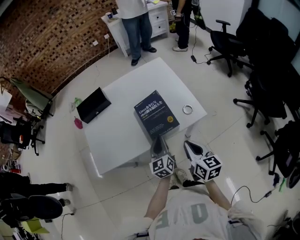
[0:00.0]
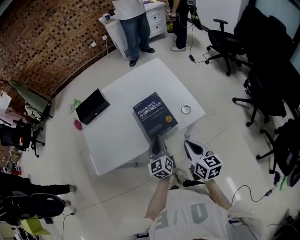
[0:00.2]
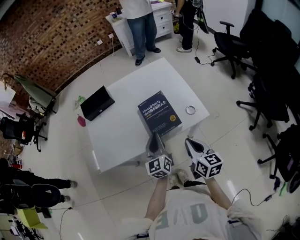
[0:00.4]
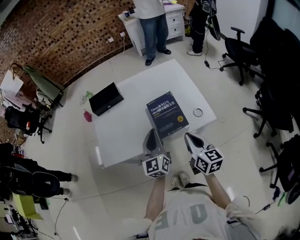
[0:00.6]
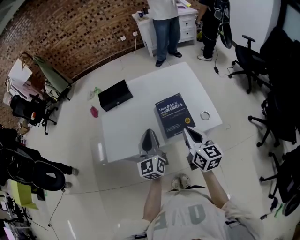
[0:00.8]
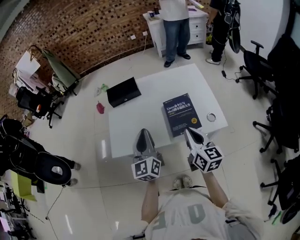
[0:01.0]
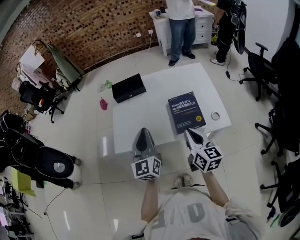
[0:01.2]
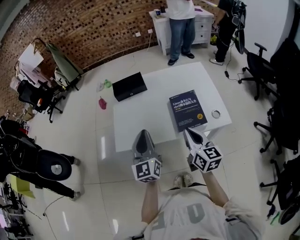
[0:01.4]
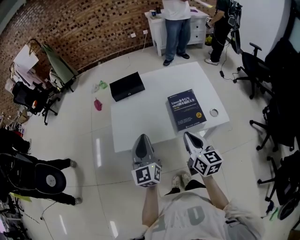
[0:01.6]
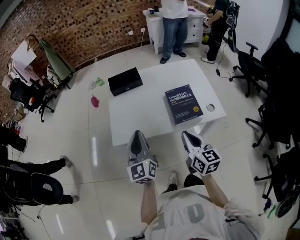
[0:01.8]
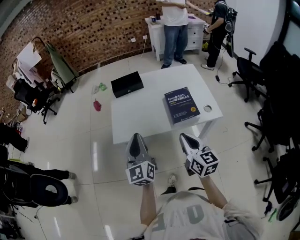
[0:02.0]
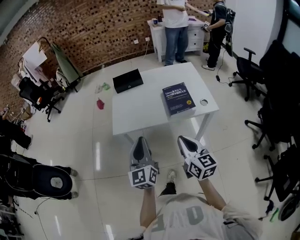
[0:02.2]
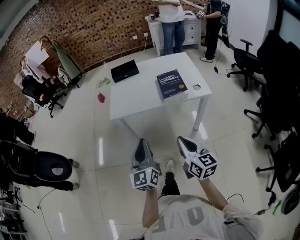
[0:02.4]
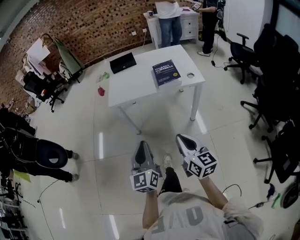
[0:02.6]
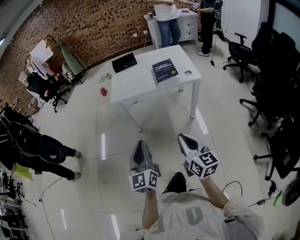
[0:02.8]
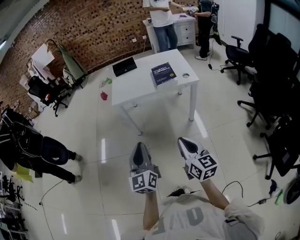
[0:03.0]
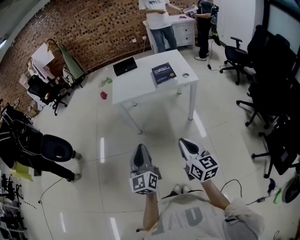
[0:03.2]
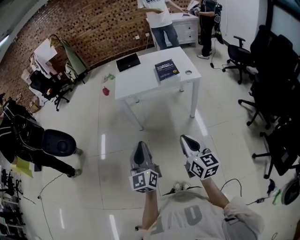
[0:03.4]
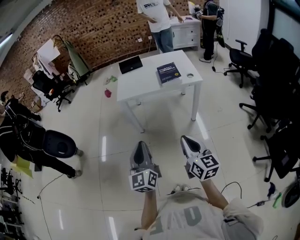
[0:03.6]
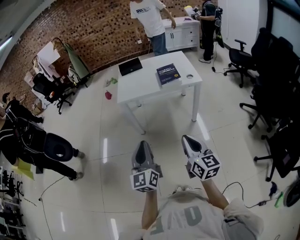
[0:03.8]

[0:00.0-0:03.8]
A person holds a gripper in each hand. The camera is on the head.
0:00.0 to 0:01.2: The left gripper shifts about 25 cm upward and to the left, and swivels approximately 30 degrees, while the right gripper is displaced to the left, upward and forward by roughly 15 cm.
0:01.2 to 0:02.6: The pair of grippers is taken backward, roughly 40 cm.
0:02.6 to 0:03.8: Both grippers travel together backward, approximately 10 cm.

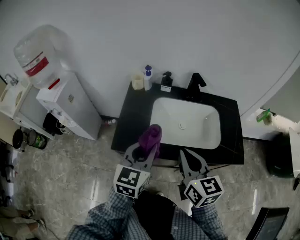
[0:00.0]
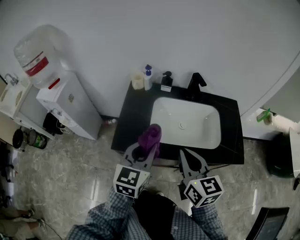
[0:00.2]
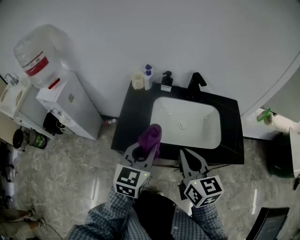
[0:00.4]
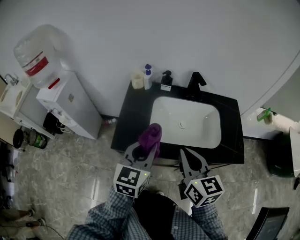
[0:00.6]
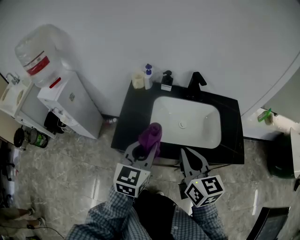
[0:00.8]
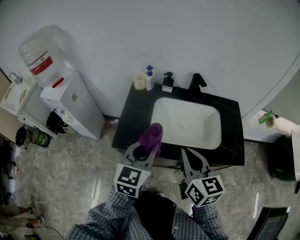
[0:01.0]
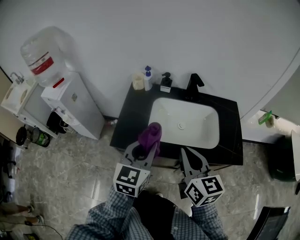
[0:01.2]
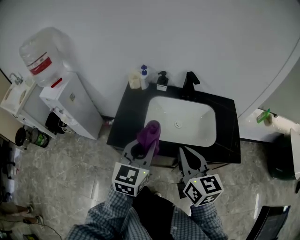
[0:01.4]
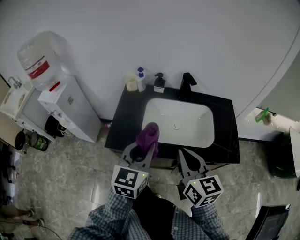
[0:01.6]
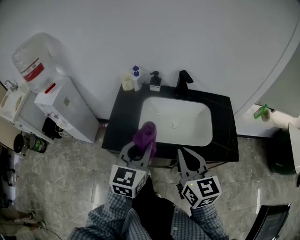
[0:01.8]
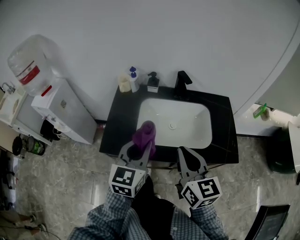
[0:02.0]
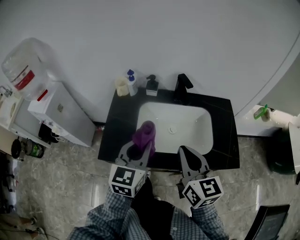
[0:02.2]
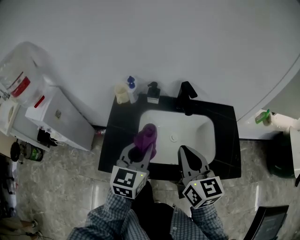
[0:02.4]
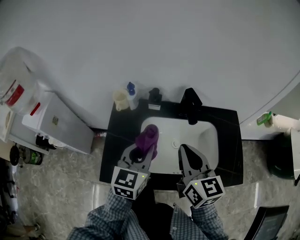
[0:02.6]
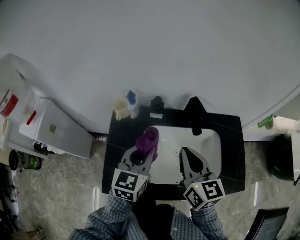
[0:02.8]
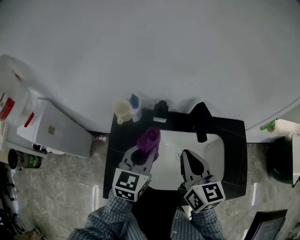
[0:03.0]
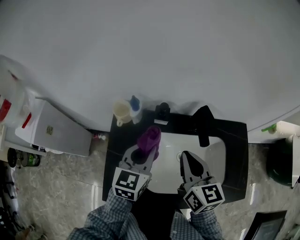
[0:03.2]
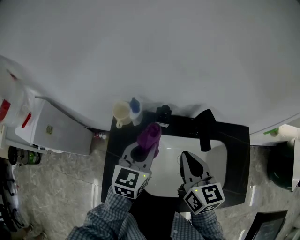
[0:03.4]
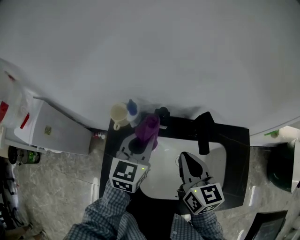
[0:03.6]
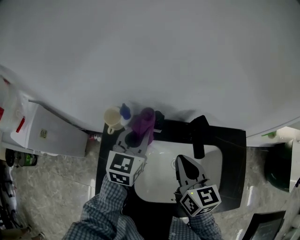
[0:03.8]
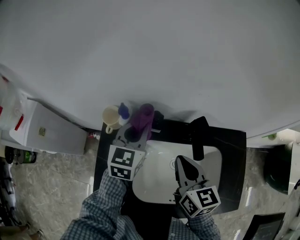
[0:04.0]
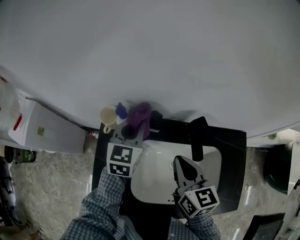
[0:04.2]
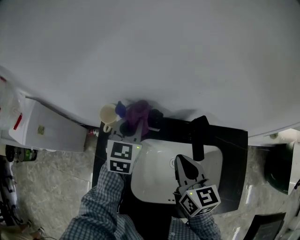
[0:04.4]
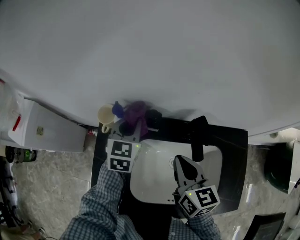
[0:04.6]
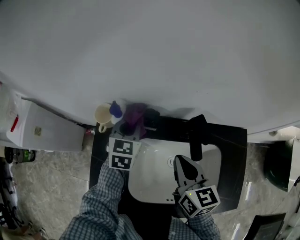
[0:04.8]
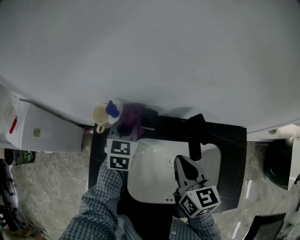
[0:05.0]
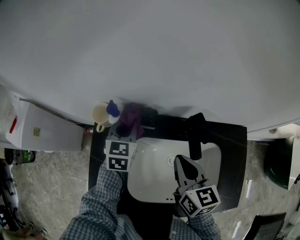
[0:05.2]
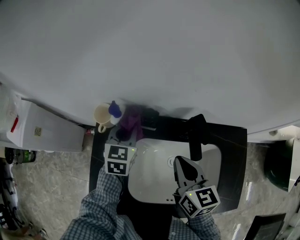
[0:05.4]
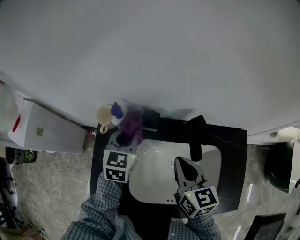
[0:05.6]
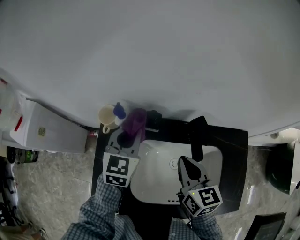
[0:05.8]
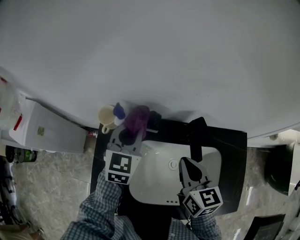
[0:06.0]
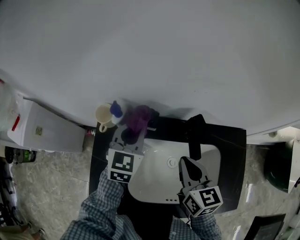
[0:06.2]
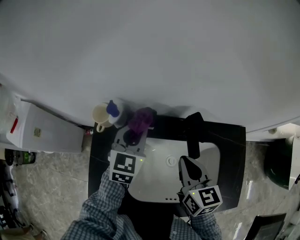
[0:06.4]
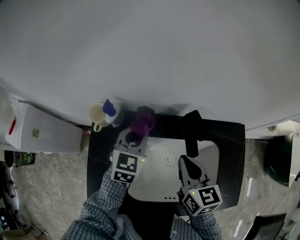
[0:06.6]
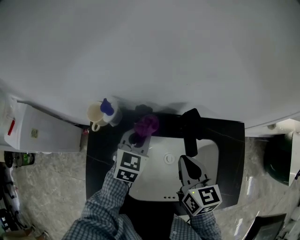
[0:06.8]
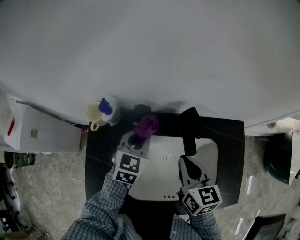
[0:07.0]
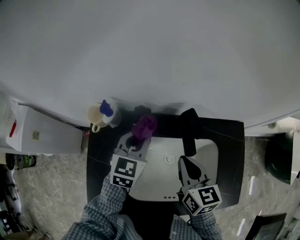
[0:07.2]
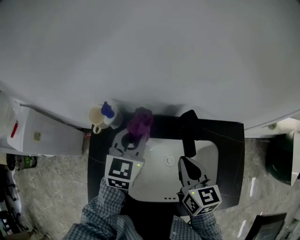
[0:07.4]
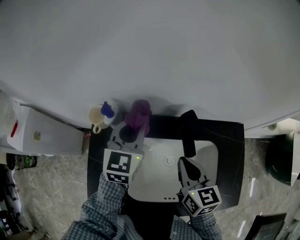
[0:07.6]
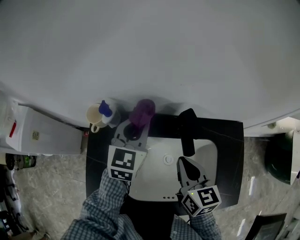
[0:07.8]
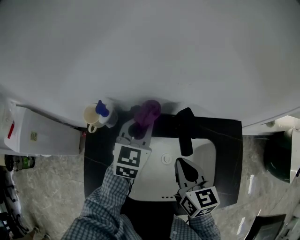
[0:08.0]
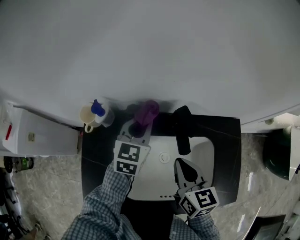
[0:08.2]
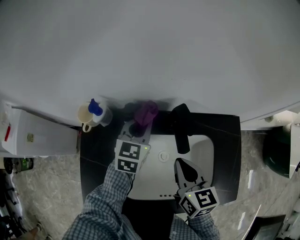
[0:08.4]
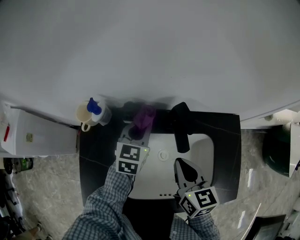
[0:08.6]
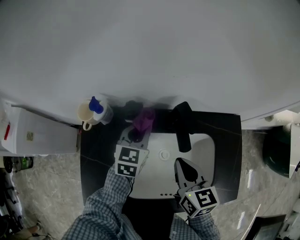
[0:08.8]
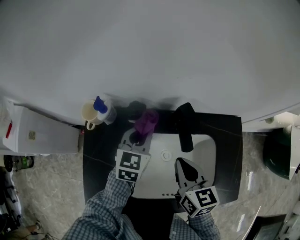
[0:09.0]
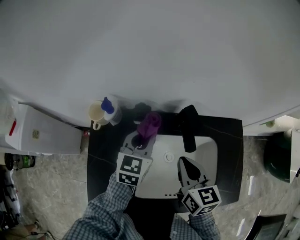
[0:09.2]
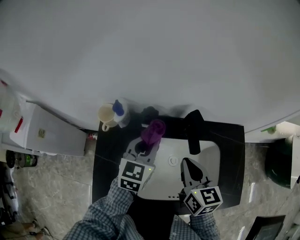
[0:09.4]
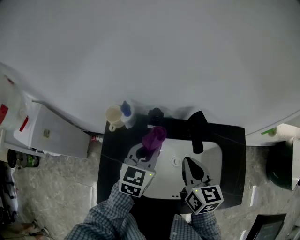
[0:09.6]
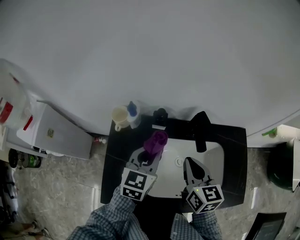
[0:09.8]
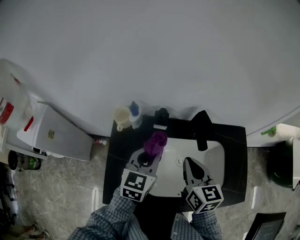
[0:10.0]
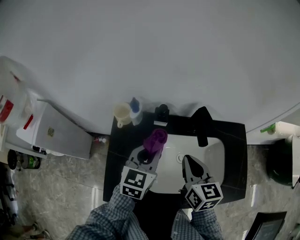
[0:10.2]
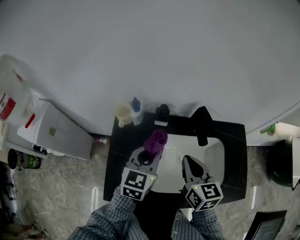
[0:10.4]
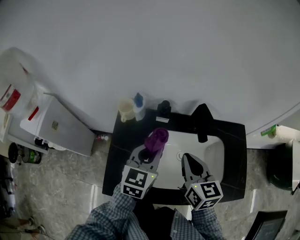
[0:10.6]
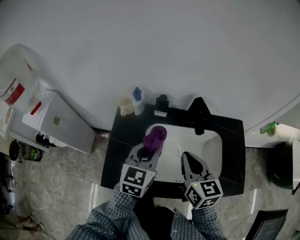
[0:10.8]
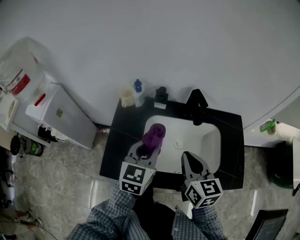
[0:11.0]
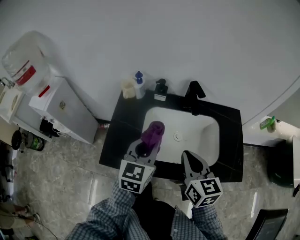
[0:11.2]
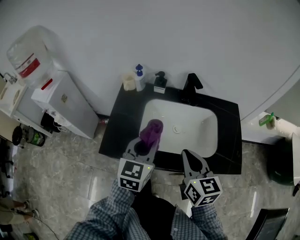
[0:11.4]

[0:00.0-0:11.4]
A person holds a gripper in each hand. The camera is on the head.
0:00.0 to 0:01.4: The grippers make only small movements.
0:01.4 to 0:02.8: Both grippers travel together forward, approximately 25 cm.
0:02.8 to 0:04.2: The right gripper heads forward and downward, covering some 10 cm; the left gripper heads forward, covering approximately 20 cm.
0:05.6 to 0:07.2: The left gripper travels to the right by about 10 cm.
0:07.2 to 0:08.6: The left gripper shifts by some 5 cm.
0:08.6 to 0:10.0: The right gripper shifts about 10 cm to the left and upward. The left gripper is displaced backward, upward and to the left by roughly 15 cm.
0:10.0 to 0:11.4: Both grippers move backward, approximately 20 cm.

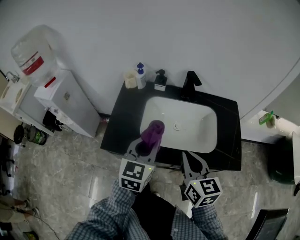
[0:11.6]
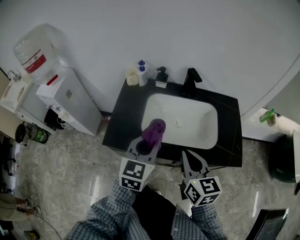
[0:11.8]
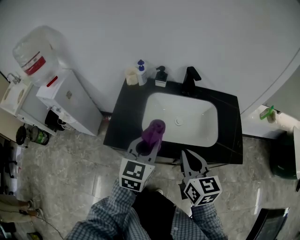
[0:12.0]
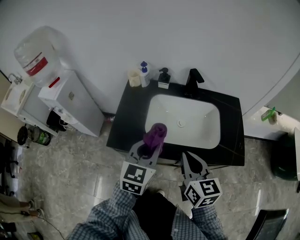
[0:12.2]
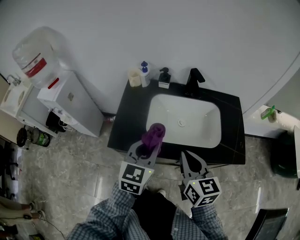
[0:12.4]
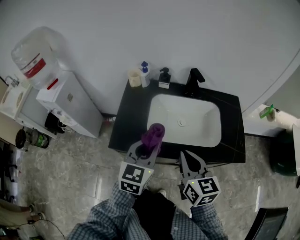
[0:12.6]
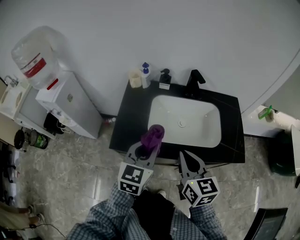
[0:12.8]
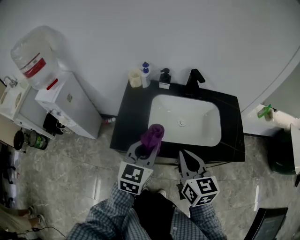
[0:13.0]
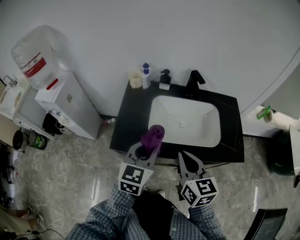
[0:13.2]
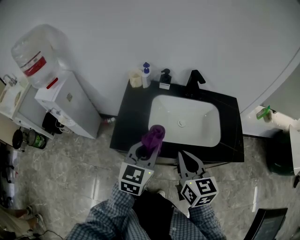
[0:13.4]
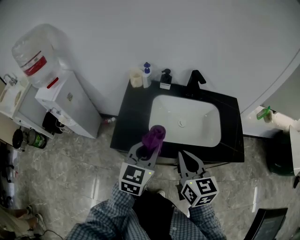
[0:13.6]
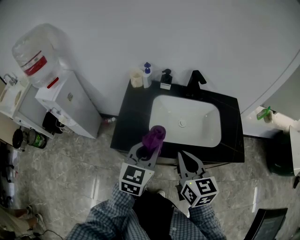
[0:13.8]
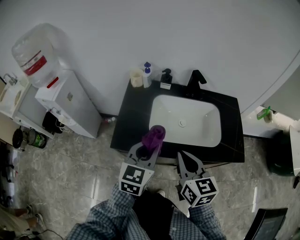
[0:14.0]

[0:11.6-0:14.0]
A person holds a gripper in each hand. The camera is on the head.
0:11.6 to 0:12.8: The left gripper moves about 5 cm. The right gripper is displaced to the left by roughly 5 cm.
0:12.8 to 0:14.0: There are only small adjustments of the grippers.

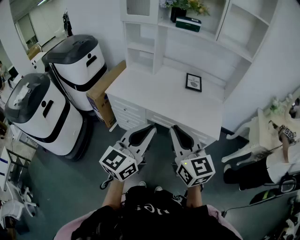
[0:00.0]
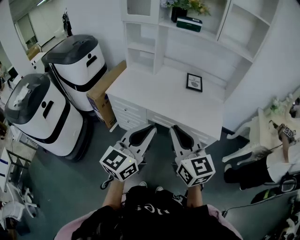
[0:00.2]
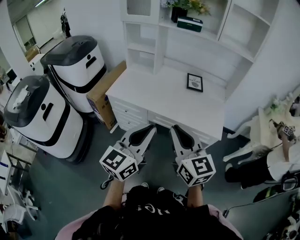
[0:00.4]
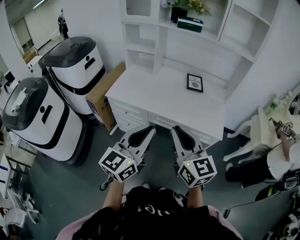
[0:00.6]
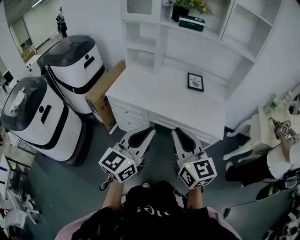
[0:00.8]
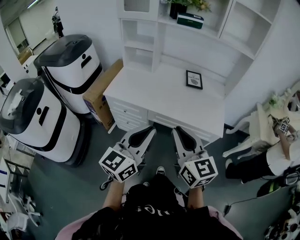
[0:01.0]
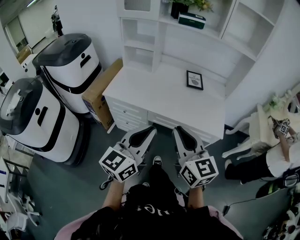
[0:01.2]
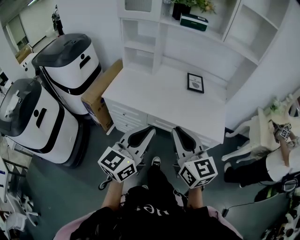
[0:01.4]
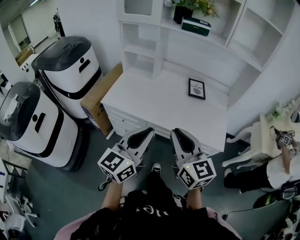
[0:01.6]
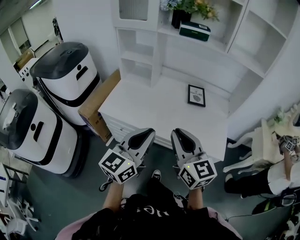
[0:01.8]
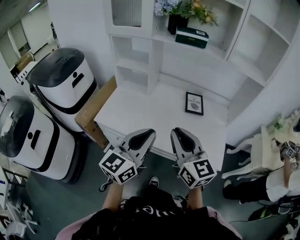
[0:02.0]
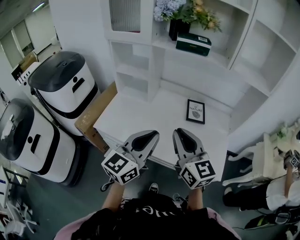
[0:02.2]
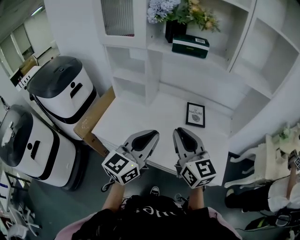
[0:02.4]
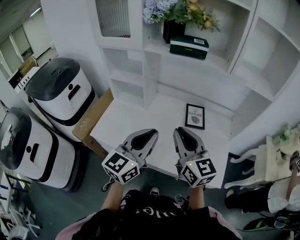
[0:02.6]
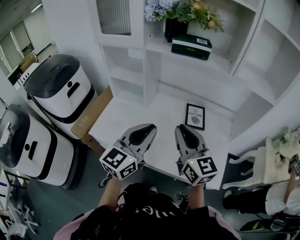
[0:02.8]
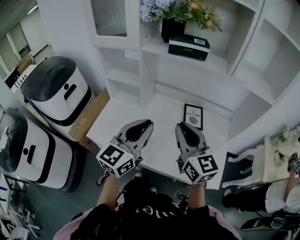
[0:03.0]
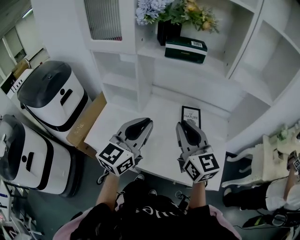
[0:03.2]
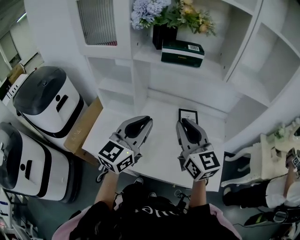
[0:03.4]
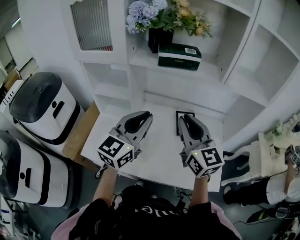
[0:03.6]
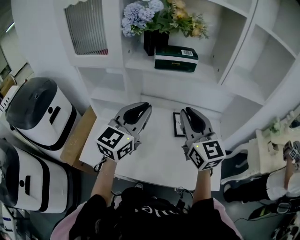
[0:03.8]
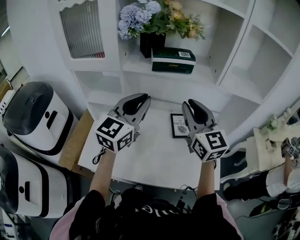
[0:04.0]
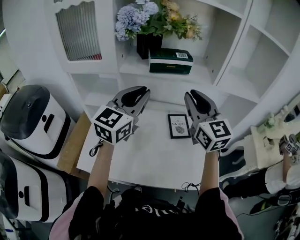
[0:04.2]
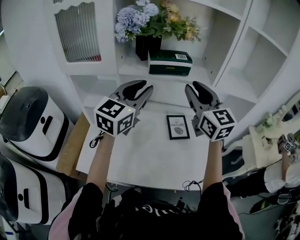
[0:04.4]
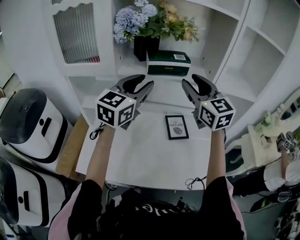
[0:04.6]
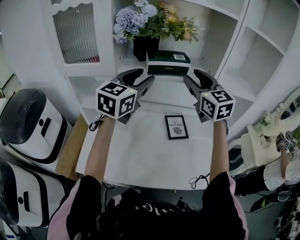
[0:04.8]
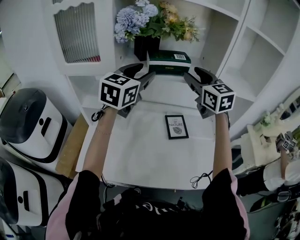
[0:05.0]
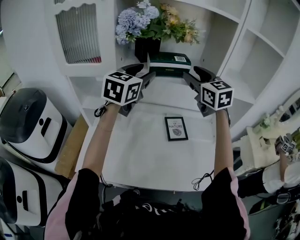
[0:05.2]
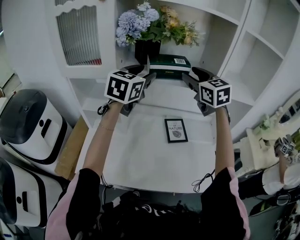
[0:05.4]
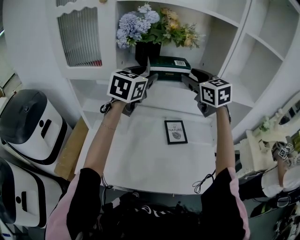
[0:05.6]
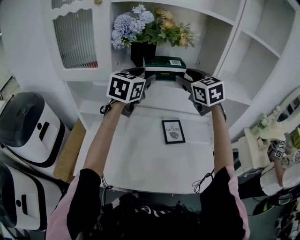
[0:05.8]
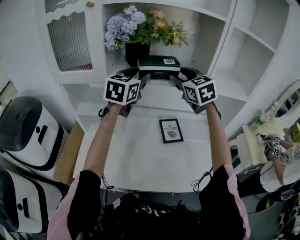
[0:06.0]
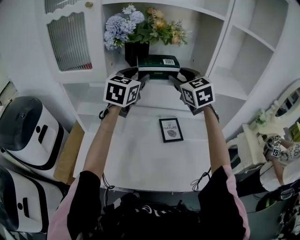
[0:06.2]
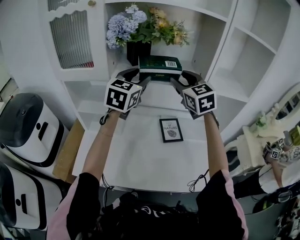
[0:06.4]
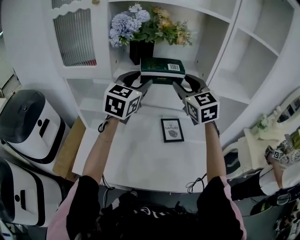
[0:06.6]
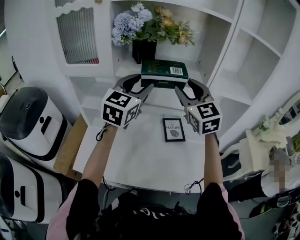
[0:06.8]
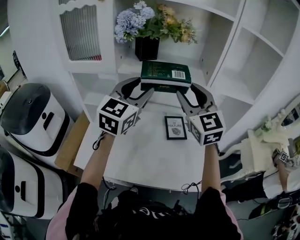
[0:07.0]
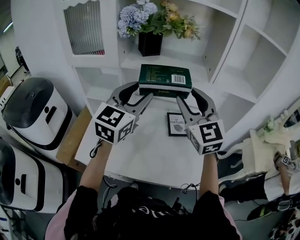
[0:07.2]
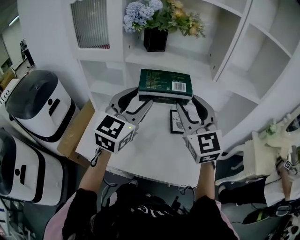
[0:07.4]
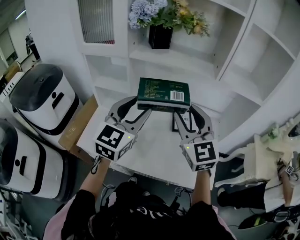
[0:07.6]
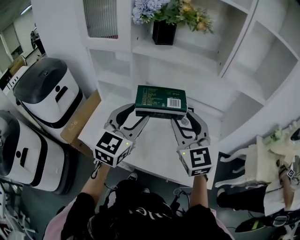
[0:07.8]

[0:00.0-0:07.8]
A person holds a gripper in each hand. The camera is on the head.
0:00.0 to 0:01.6: The right gripper shifts roughly 10 cm forward, while the left gripper moves forward and to the left, some 15 cm.
0:01.6 to 0:03.2: The two grippers go roughly 30 cm forward.
0:03.2 to 0:04.6: The two grippers go approximately 20 cm forward and upward. The left gripper opens its fingers; the right gripper opens its fingers.
0:04.6 to 0:06.2: Both grippers move forward, roughly 5 cm.
0:06.2 to 0:07.8: The grippers both shift backward and downward by roughly 25 cm.
